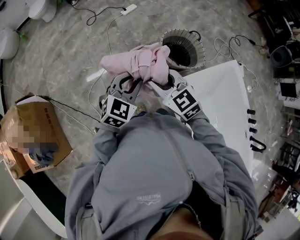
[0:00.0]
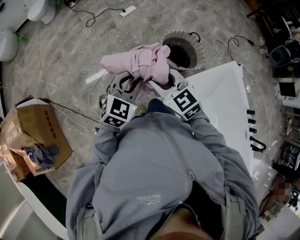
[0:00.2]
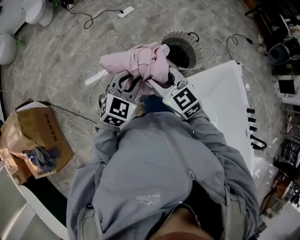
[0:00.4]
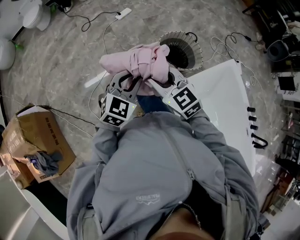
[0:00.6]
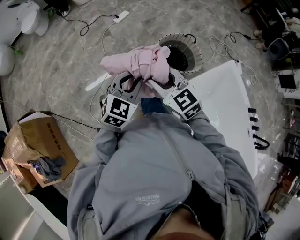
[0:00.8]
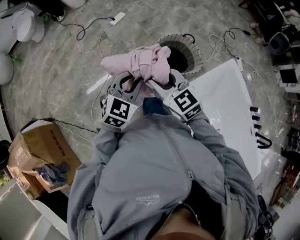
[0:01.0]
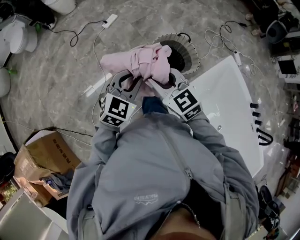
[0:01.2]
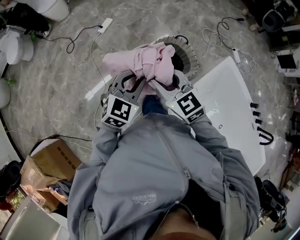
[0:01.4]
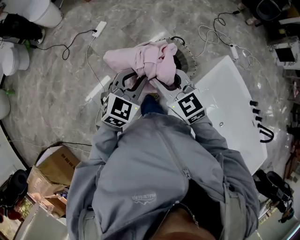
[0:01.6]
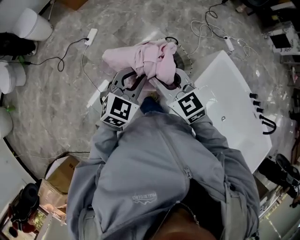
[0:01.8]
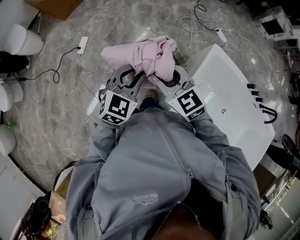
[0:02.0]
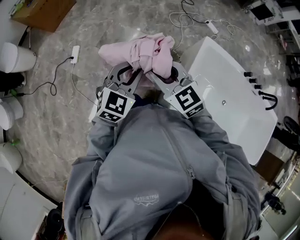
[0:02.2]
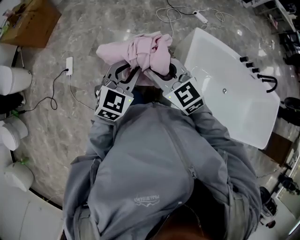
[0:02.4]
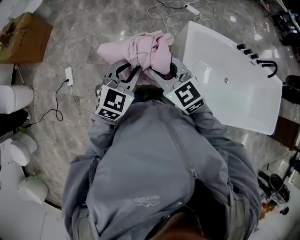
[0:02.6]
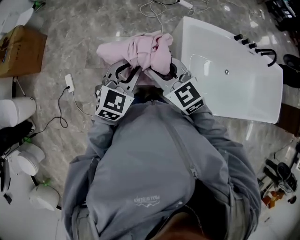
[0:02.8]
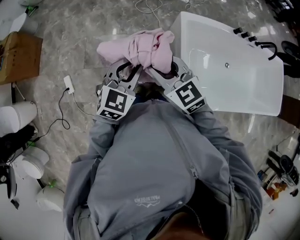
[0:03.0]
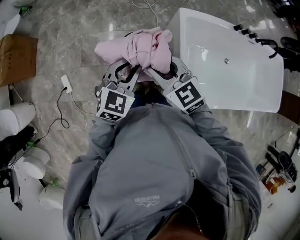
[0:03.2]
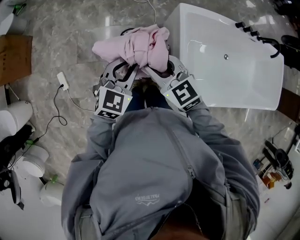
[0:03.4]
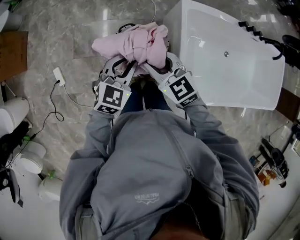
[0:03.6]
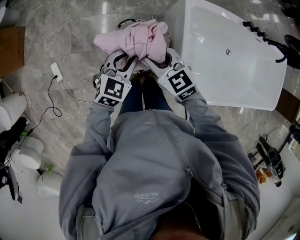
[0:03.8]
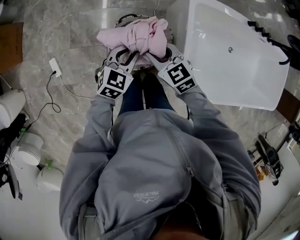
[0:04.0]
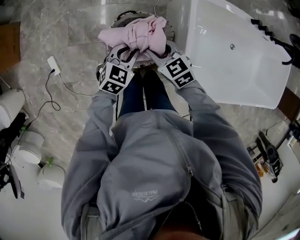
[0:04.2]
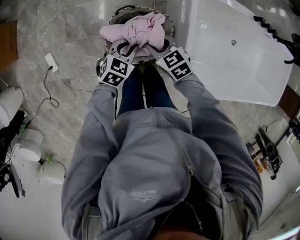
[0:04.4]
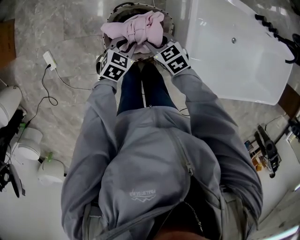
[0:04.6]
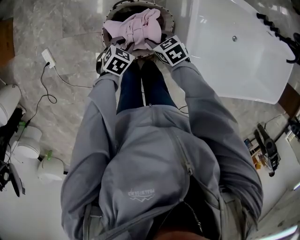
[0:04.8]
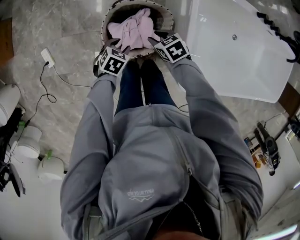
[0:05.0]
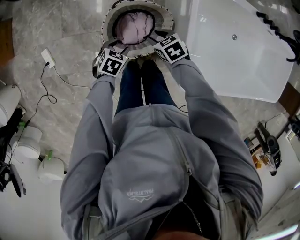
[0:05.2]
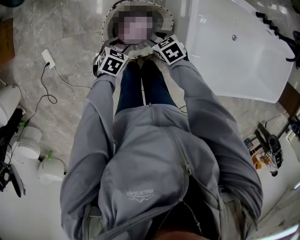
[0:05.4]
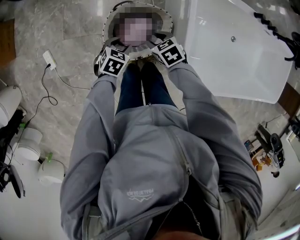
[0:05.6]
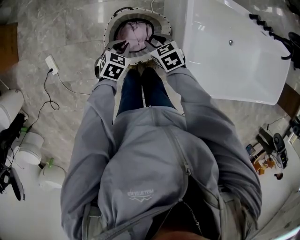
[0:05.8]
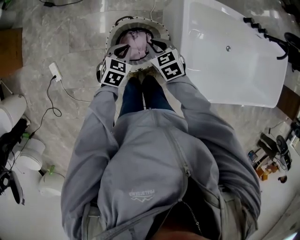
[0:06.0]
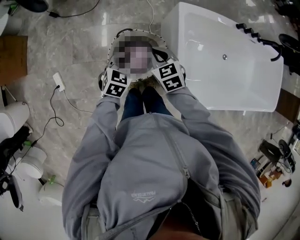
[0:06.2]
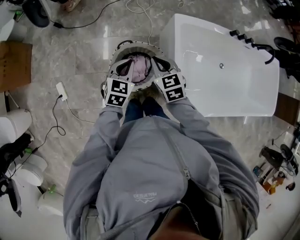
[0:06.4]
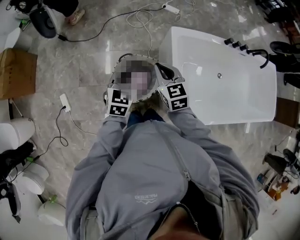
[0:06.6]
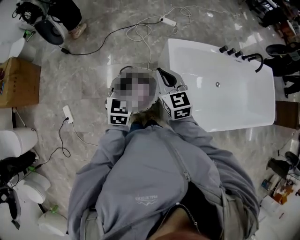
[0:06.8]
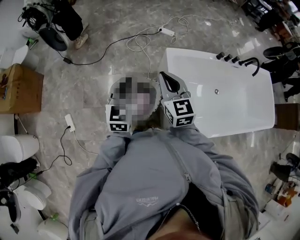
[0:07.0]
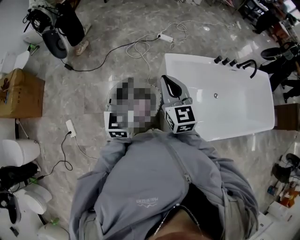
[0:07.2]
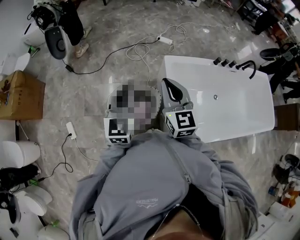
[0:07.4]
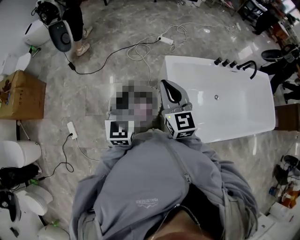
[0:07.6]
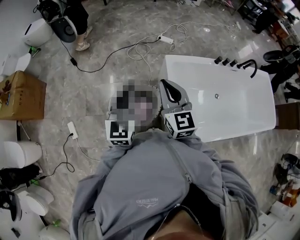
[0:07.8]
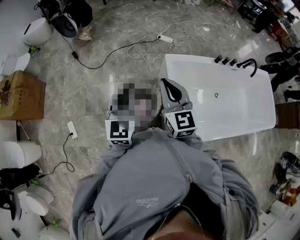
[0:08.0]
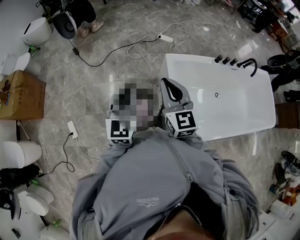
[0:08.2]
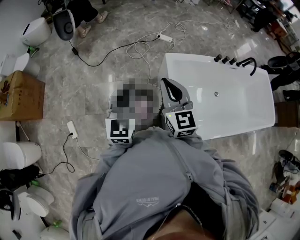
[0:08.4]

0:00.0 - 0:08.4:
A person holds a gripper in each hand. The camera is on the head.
0:00.0 - 0:01.4: The grippers both shift forward and to the right by approximately 20 cm.
0:01.4 - 0:02.8: The right gripper shifts by approximately 20 cm, and rotates about 40 degrees; the left gripper moves about 20 cm, and changes its angle by roughly 40 degrees.
0:02.8 - 0:04.2: The left gripper goes roughly 25 cm downward, and changes its angle by roughly 20 degrees. The right gripper shifts about 25 cm downward and forward, and swivels approximately 20 degrees.
0:04.2 - 0:05.6: Both grippers travel together downward, roughly 10 cm. The right gripper changes its angle by approximately 20 degrees, while the left gripper swivels approximately 20 degrees.
0:05.6 - 0:07.0: Both grippers move upward, roughly 40 cm. The left gripper tilts its fingers some 50 degrees upward, and closes. The right gripper tips its fingers upward by approximately 40 degrees.
0:07.0 - 0:08.4: Both grippers travel together upward, about 5 cm.

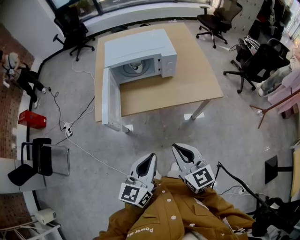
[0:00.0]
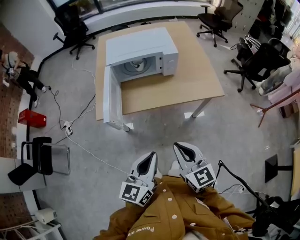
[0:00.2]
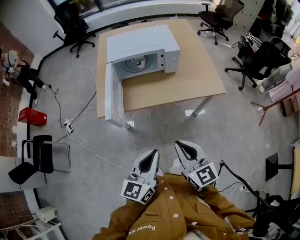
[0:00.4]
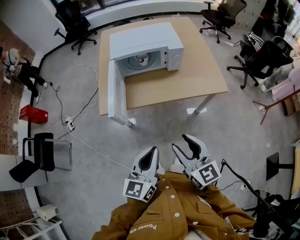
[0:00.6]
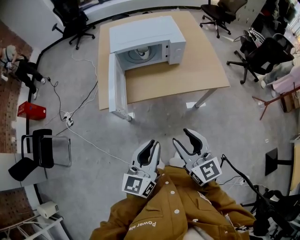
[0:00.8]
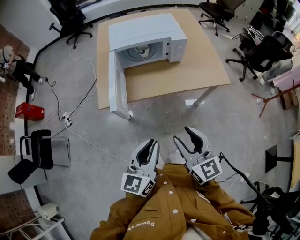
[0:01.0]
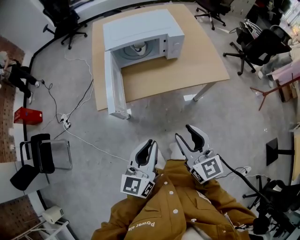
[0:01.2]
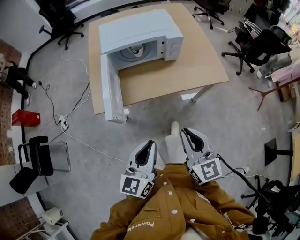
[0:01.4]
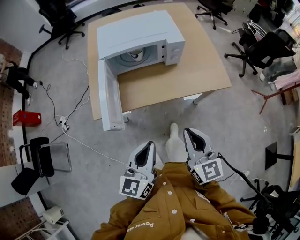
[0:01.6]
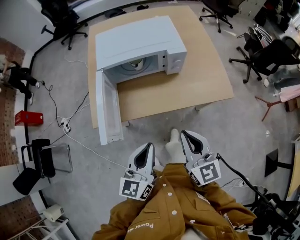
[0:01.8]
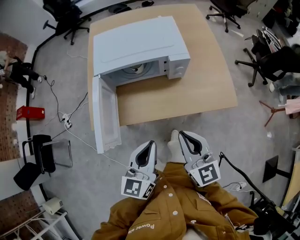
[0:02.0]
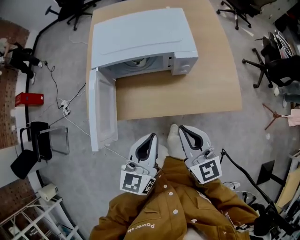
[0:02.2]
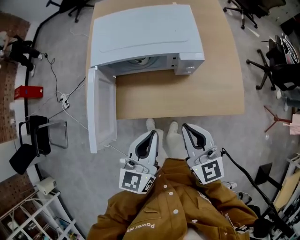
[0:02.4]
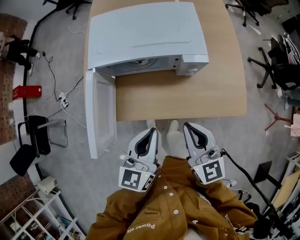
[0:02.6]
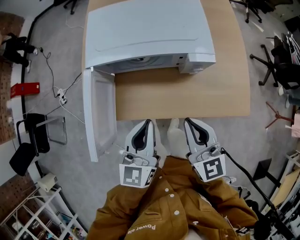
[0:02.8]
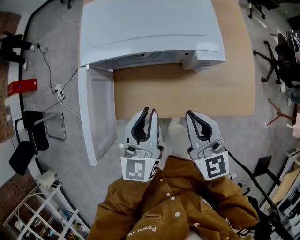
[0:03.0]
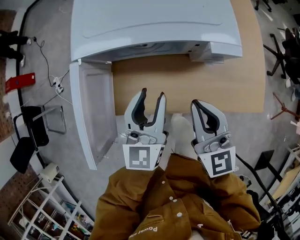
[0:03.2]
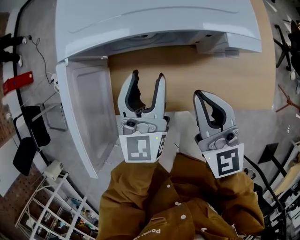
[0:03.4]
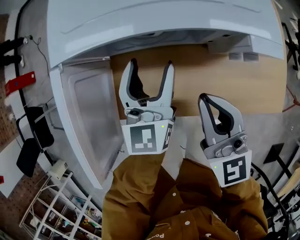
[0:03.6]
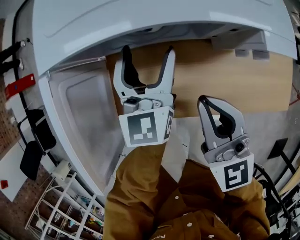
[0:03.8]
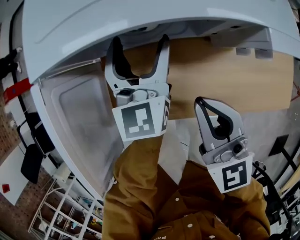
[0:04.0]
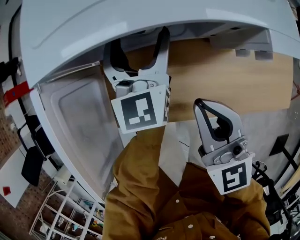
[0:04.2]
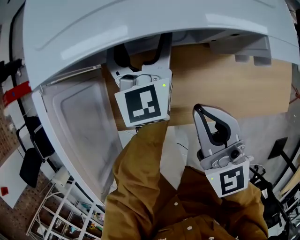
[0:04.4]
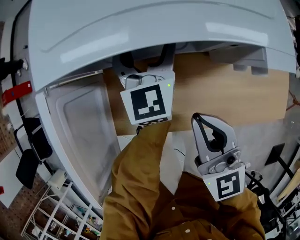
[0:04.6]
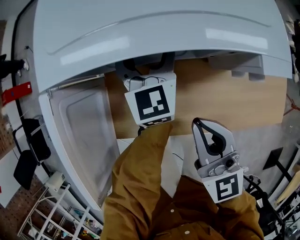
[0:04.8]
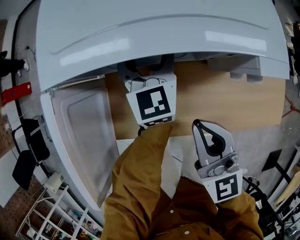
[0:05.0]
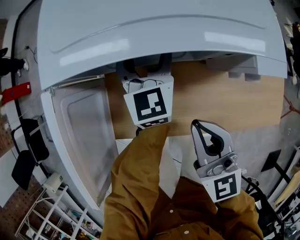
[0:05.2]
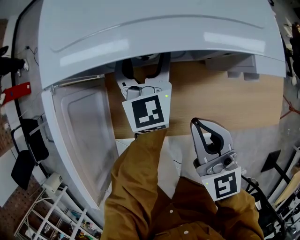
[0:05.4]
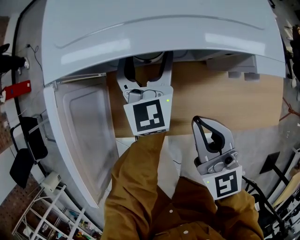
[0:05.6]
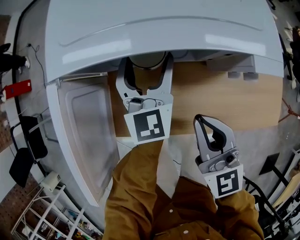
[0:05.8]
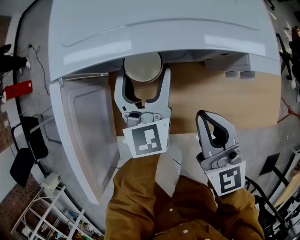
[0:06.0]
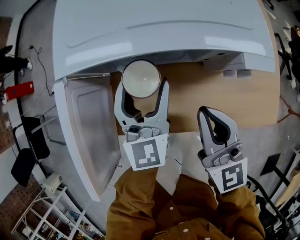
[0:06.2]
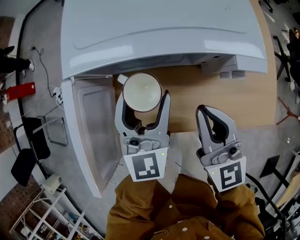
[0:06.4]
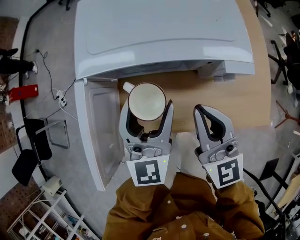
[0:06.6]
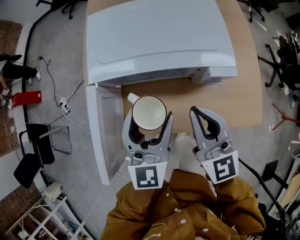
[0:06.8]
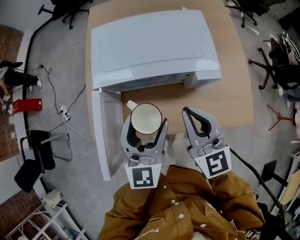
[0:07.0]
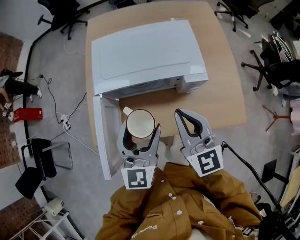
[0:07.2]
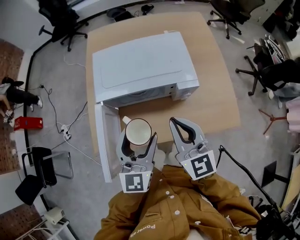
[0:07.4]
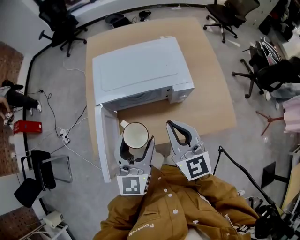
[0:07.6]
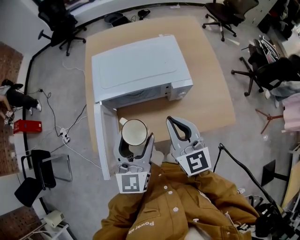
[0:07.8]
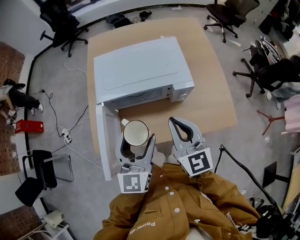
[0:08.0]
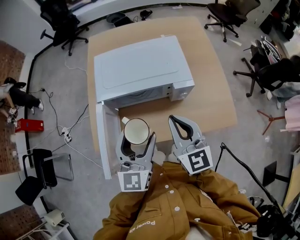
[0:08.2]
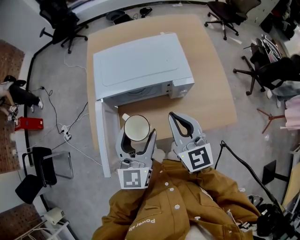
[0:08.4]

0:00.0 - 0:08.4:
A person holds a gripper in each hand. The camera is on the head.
0:00.0 - 0:01.4: The left gripper shifts some 5 cm to the left. The right gripper ends up about 5 cm from where it was, and opens, then closes once more.
0:01.4 - 0:02.8: The grippers both shift forward by some 30 cm.
0:02.8 - 0:04.2: The right gripper heads downward, forward and to the left, covering roughly 15 cm, while the left gripper is displaced forward and downward by approximately 30 cm, and opens.
0:04.2 - 0:05.6: The grippers stay close to where they were, moving slightly.
0:05.6 - 0:07.0: The left gripper moves upward and backward, approximately 25 cm; the right gripper shifts roughly 15 cm upward.
0:07.0 - 0:08.4: The right gripper heads upward, covering roughly 5 cm; the left gripper is displaced upward and backward by approximately 10 cm.

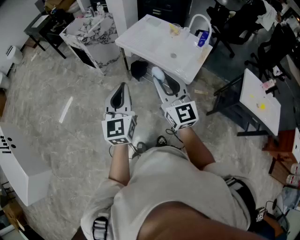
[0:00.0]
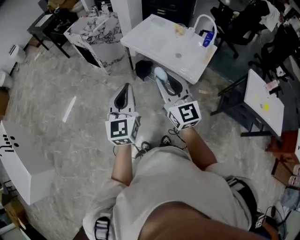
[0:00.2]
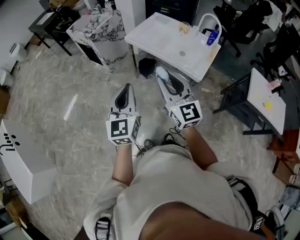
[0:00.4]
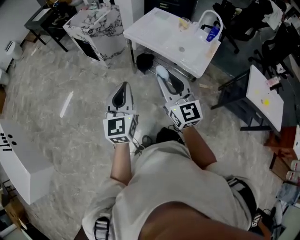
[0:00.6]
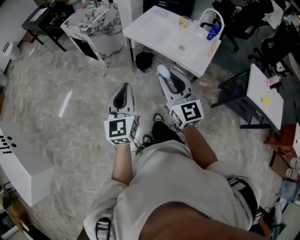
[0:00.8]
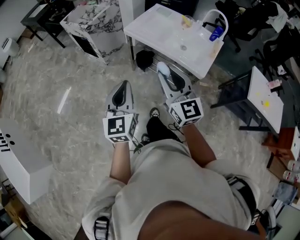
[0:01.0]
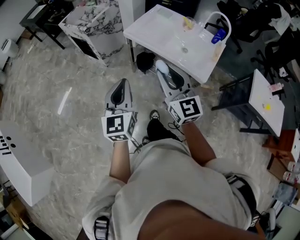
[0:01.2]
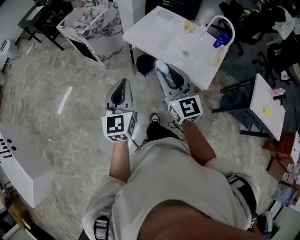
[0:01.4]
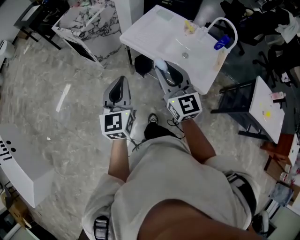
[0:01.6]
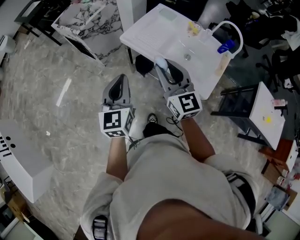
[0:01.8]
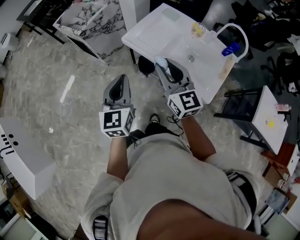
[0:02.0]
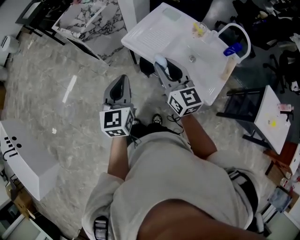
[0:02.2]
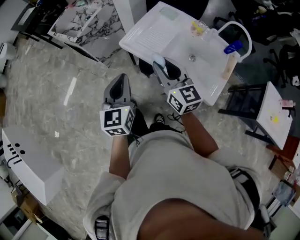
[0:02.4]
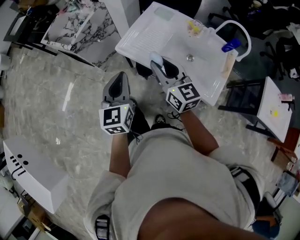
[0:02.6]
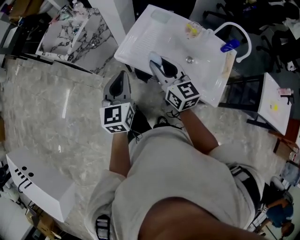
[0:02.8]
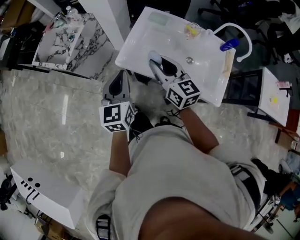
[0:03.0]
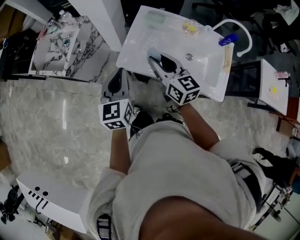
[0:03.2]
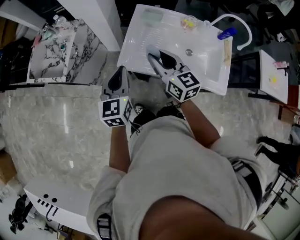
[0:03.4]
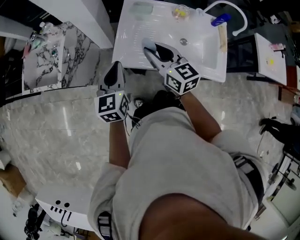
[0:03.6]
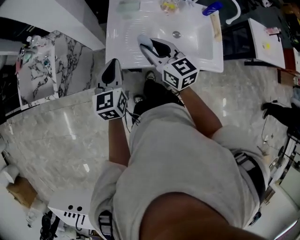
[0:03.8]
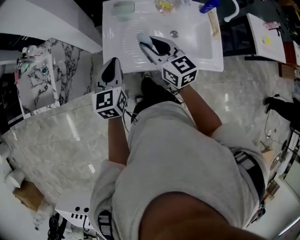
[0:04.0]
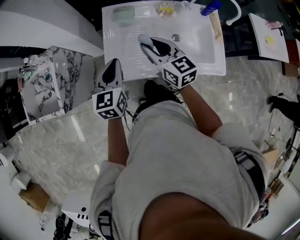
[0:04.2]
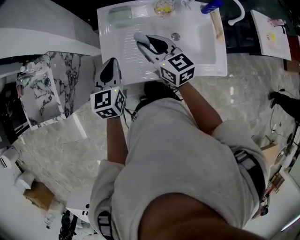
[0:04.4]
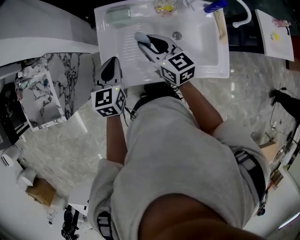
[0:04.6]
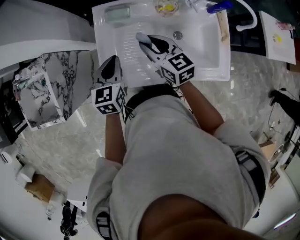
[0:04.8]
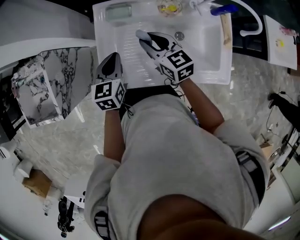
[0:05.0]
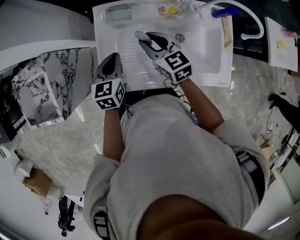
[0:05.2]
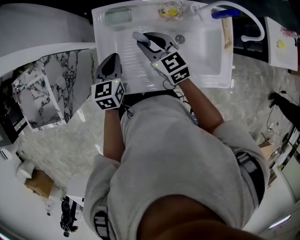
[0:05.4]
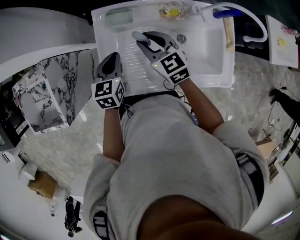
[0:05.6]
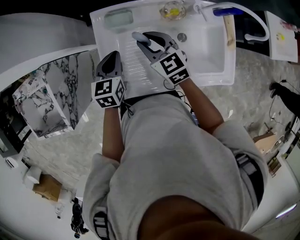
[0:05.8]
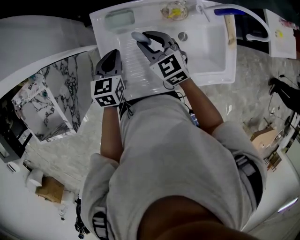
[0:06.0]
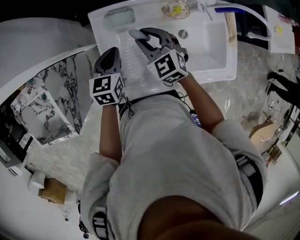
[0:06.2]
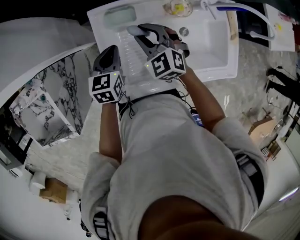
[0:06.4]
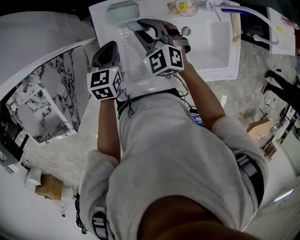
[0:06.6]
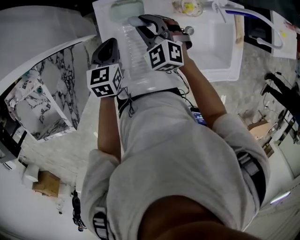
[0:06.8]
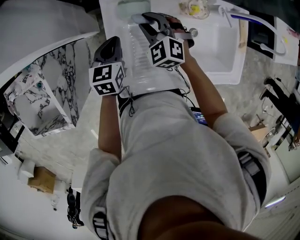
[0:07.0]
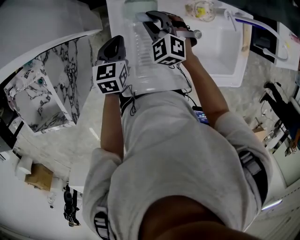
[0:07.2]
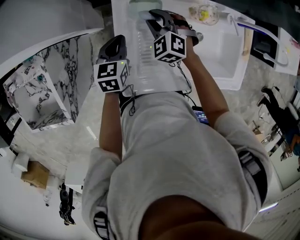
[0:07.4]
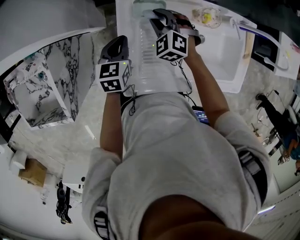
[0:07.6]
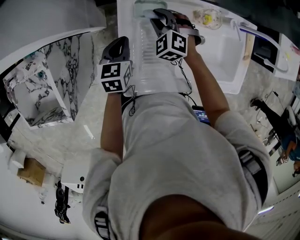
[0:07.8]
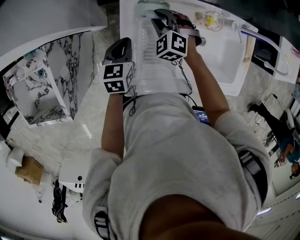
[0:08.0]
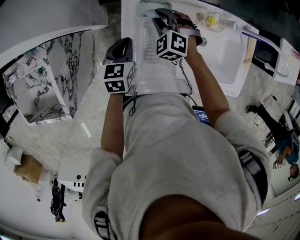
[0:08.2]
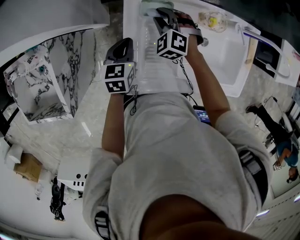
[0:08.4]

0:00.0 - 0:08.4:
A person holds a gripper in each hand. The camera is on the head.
0:00.0 - 0:01.4: The right gripper shifts about 15 cm forward. The left gripper moves forward and to the left, about 15 cm.
0:01.4 - 0:02.8: Both grippers travel together forward, some 30 cm.
0:02.8 - 0:04.2: The right gripper moves about 15 cm, and turns by roughly 20 degrees. Meanwhile the left gripper changes place by about 20 cm, and changes its angle by approximately 30 degrees.
0:04.2 - 0:05.6: The two grippers go about 20 cm forward and downward.
0:05.6 - 0:07.0: The right gripper heads forward, downward and to the left, covering some 15 cm, and changes its angle by about 40 degrees; the left gripper goes some 10 cm forward, to the left and downward.
0:07.0 - 0:08.4: The right gripper moves about 5 cm.
